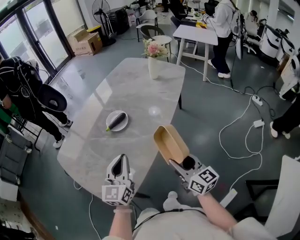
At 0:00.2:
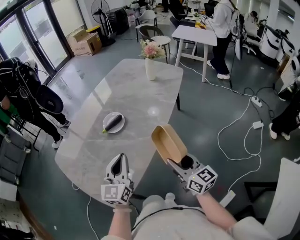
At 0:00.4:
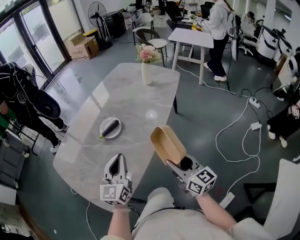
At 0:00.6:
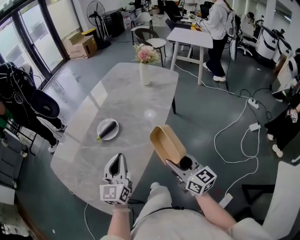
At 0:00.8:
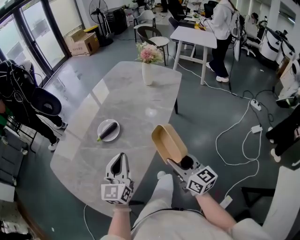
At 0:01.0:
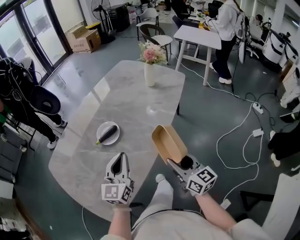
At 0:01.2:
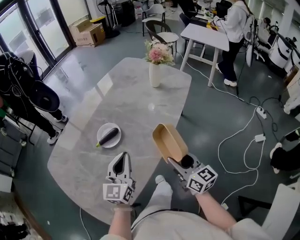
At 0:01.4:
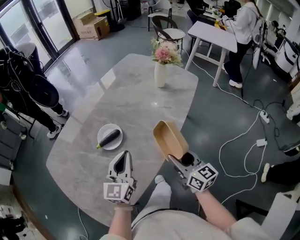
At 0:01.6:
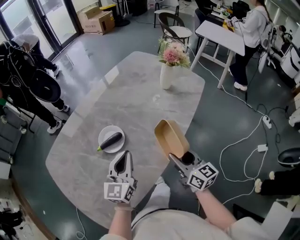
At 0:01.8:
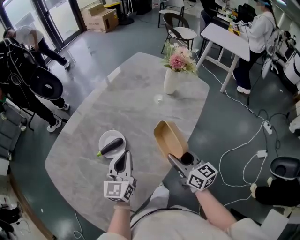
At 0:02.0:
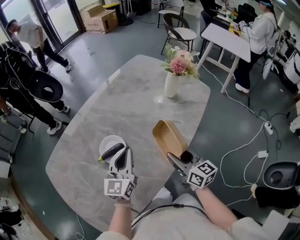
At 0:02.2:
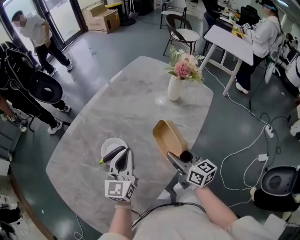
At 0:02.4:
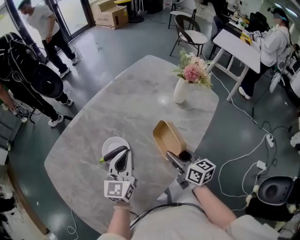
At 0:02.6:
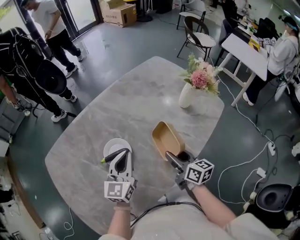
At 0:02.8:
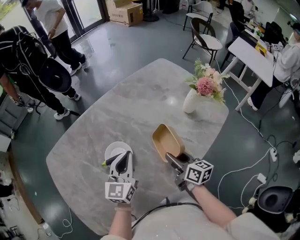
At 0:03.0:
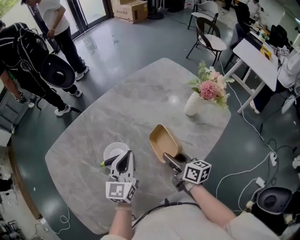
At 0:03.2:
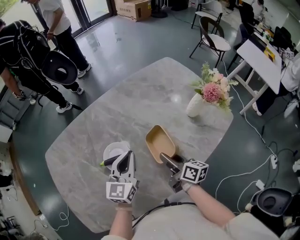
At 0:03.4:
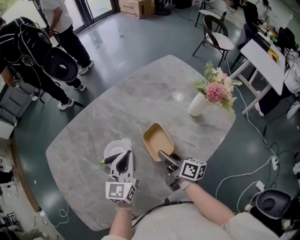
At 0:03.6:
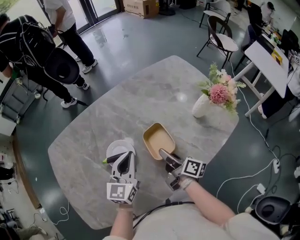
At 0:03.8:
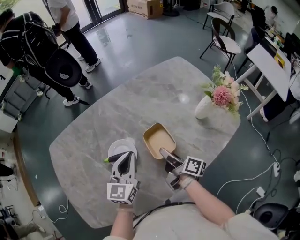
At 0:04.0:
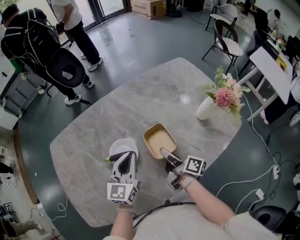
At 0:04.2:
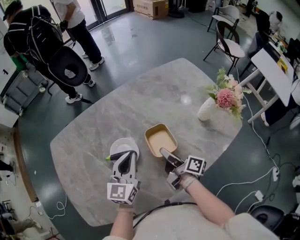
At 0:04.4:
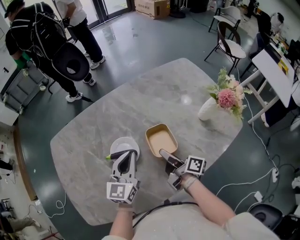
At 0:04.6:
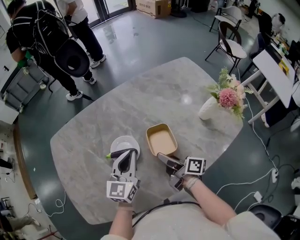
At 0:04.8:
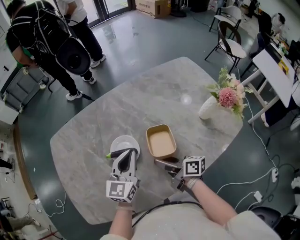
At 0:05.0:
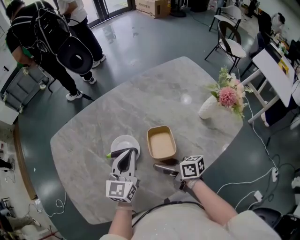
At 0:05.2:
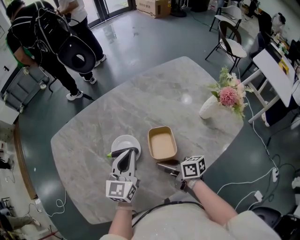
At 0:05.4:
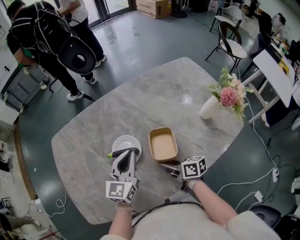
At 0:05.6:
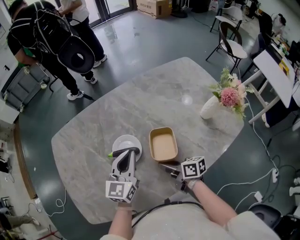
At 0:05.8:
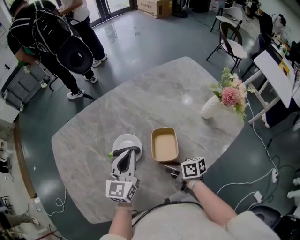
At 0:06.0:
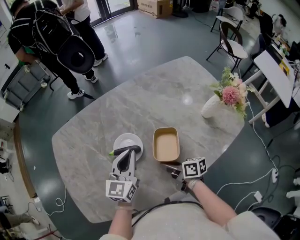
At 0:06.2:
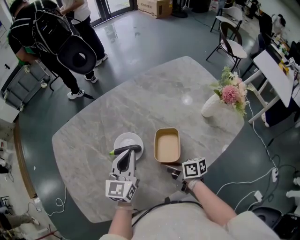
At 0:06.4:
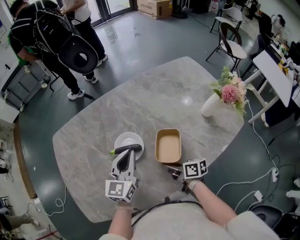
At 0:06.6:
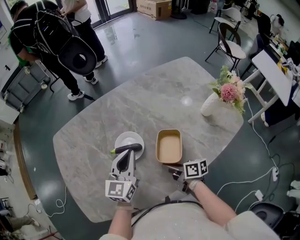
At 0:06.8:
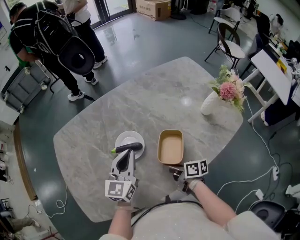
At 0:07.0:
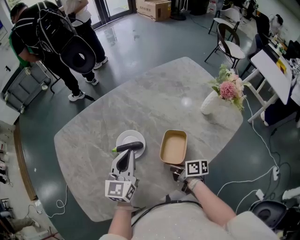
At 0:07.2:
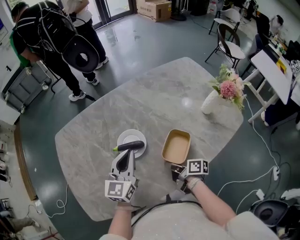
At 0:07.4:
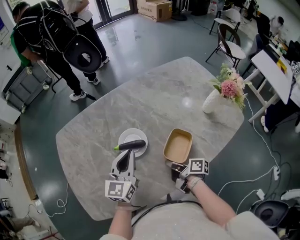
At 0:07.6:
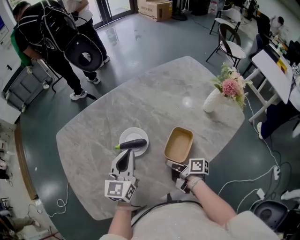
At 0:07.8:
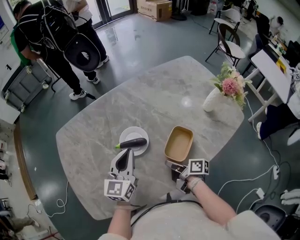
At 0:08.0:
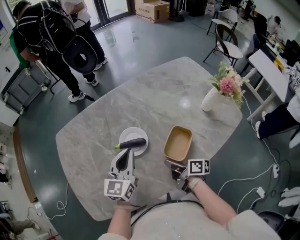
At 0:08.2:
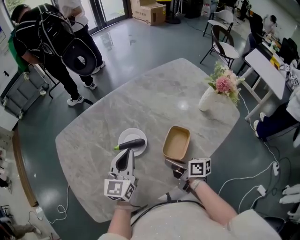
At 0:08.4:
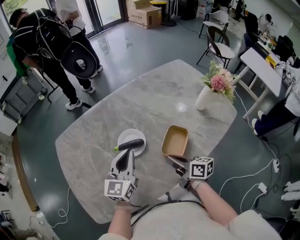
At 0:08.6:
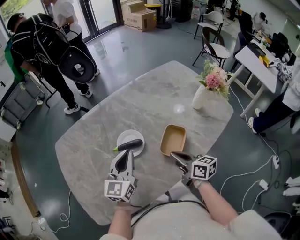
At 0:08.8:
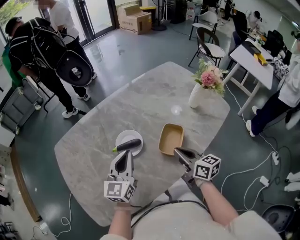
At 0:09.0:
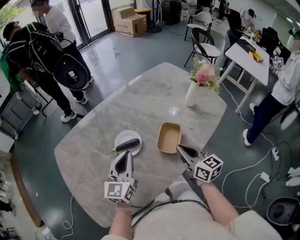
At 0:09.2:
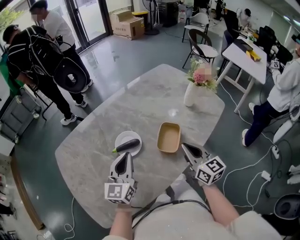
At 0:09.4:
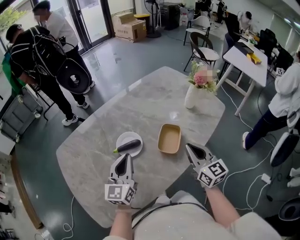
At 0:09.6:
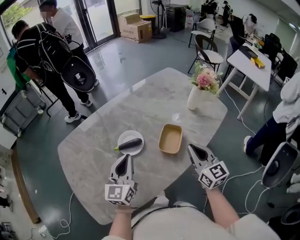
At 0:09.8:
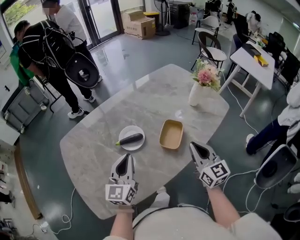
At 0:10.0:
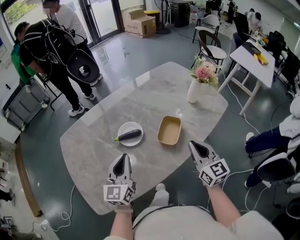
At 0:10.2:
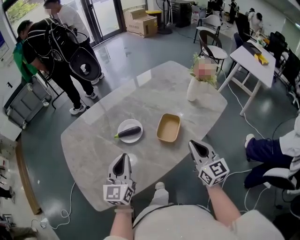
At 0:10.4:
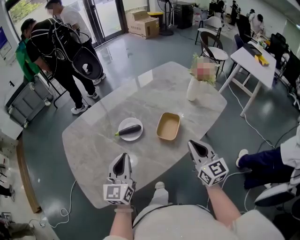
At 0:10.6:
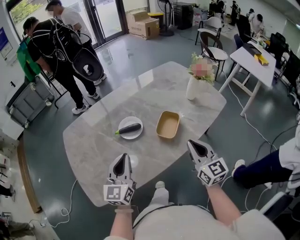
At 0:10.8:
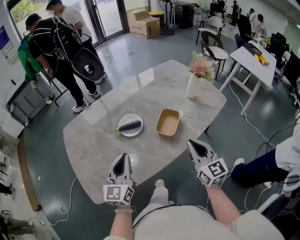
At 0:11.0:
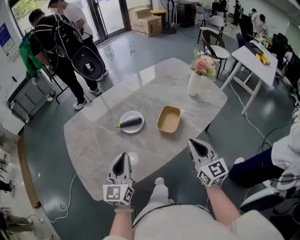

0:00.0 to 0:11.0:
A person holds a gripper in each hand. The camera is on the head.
0:00.0 to 0:01.6: The right gripper goes roughly 25 cm forward; the left gripper is displaced forward and to the right by about 20 cm.
0:01.6 to 0:03.2: Both grippers move forward, some 15 cm. The right gripper changes its angle by approximately 30 degrees.
0:03.2 to 0:04.8: The right gripper is displaced to the left by about 10 cm, and rotates roughly 30 degrees.
0:04.8 to 0:06.2: The right gripper moves approximately 5 cm, and closes its fingers.
0:06.2 to 0:07.8: The right gripper turns by some 20 degrees.
0:07.8 to 0:09.4: The left gripper heads backward, covering some 5 cm. Meanwhile the right gripper shifts some 20 cm upward and to the right, and twists about 70 degrees counterclockwise, seen from behind.
0:09.4 to 0:11.0: The grippers both shift backward by approximately 10 cm.

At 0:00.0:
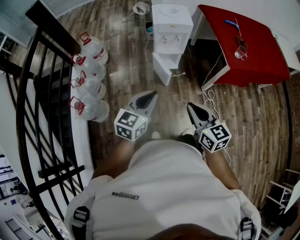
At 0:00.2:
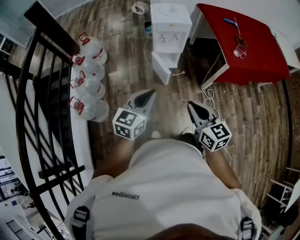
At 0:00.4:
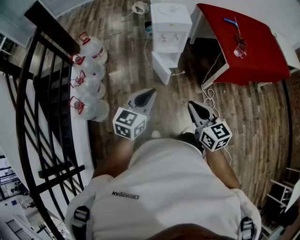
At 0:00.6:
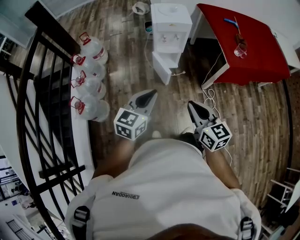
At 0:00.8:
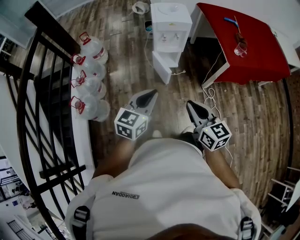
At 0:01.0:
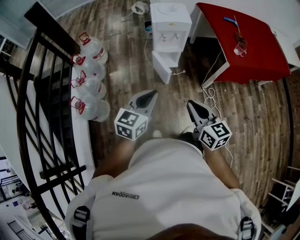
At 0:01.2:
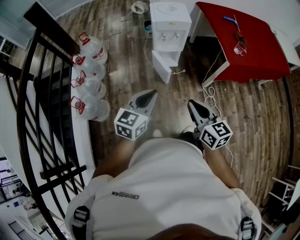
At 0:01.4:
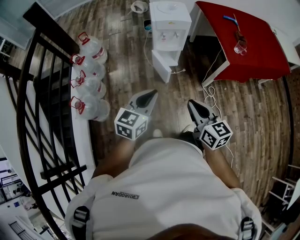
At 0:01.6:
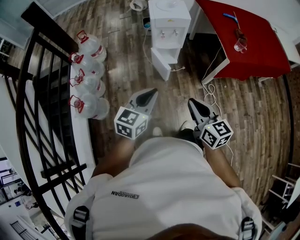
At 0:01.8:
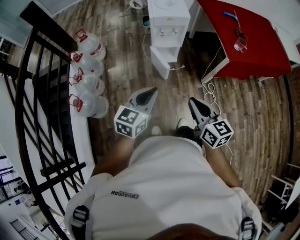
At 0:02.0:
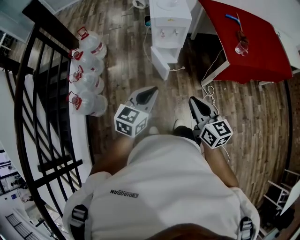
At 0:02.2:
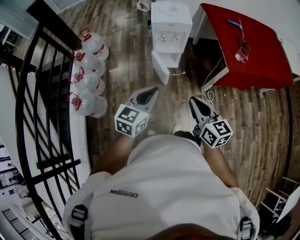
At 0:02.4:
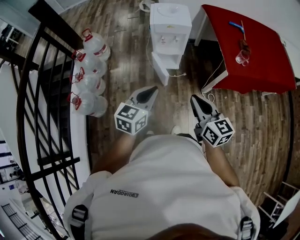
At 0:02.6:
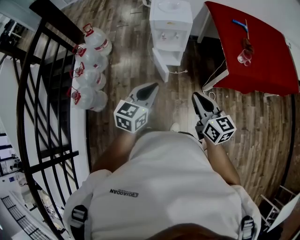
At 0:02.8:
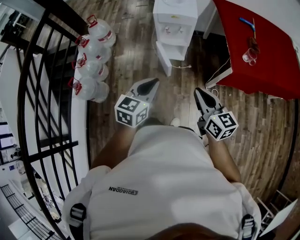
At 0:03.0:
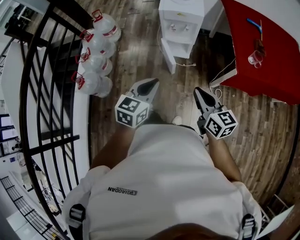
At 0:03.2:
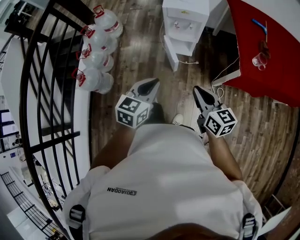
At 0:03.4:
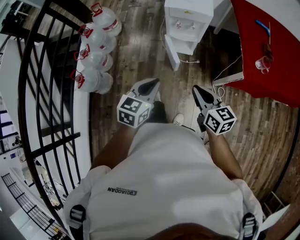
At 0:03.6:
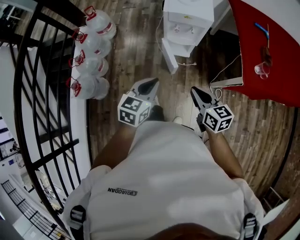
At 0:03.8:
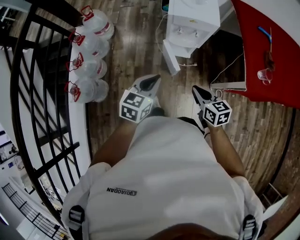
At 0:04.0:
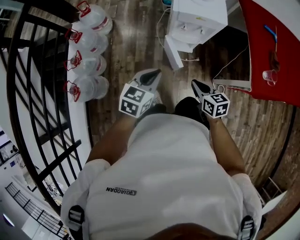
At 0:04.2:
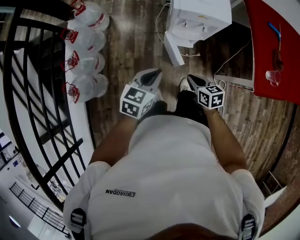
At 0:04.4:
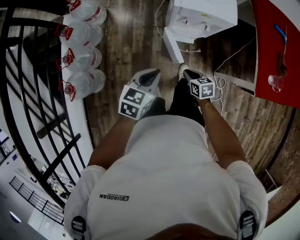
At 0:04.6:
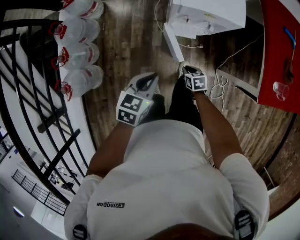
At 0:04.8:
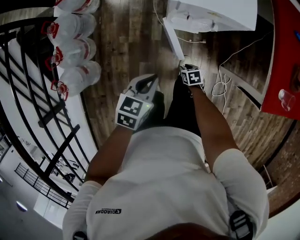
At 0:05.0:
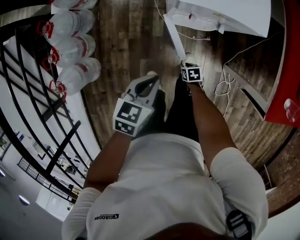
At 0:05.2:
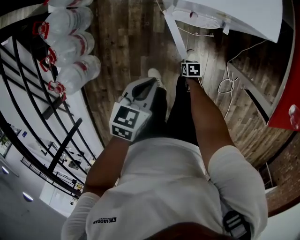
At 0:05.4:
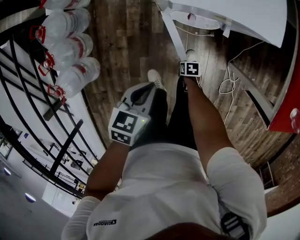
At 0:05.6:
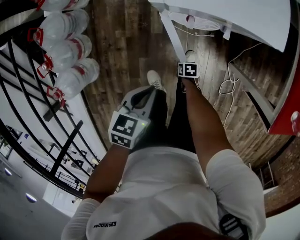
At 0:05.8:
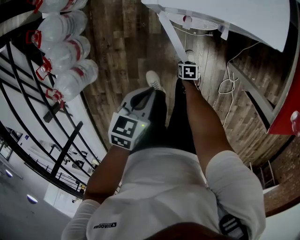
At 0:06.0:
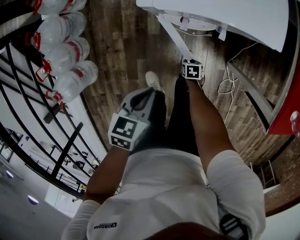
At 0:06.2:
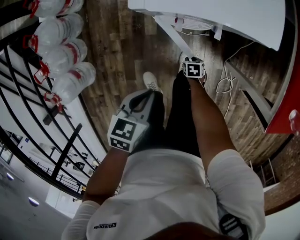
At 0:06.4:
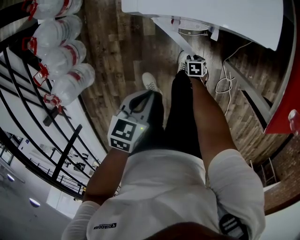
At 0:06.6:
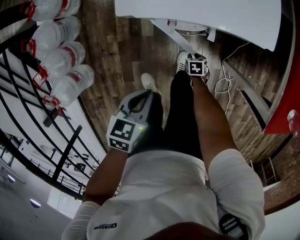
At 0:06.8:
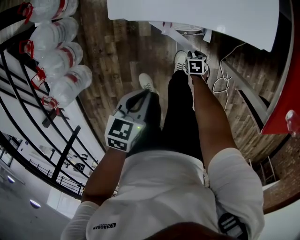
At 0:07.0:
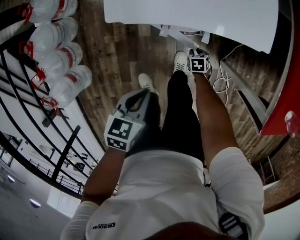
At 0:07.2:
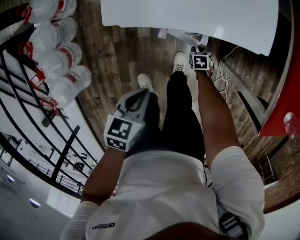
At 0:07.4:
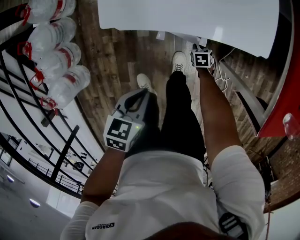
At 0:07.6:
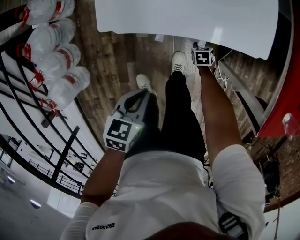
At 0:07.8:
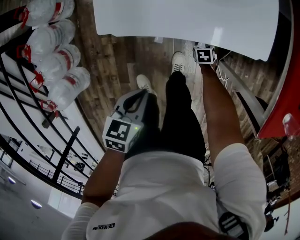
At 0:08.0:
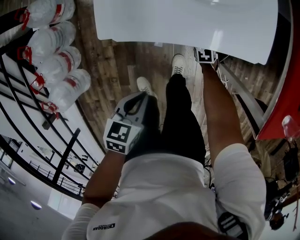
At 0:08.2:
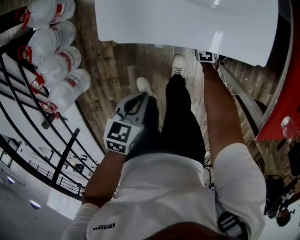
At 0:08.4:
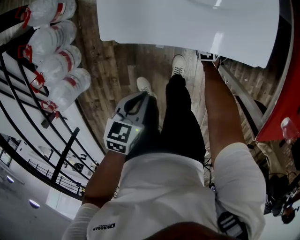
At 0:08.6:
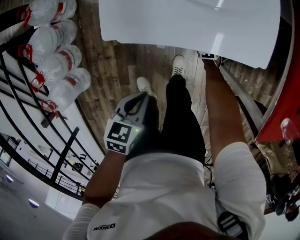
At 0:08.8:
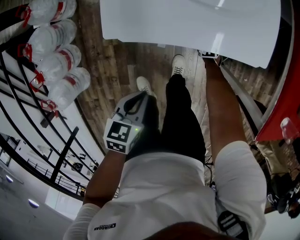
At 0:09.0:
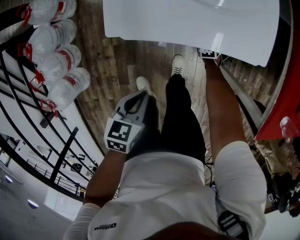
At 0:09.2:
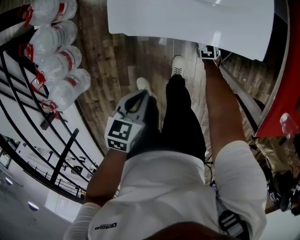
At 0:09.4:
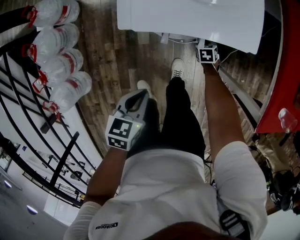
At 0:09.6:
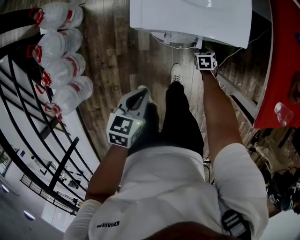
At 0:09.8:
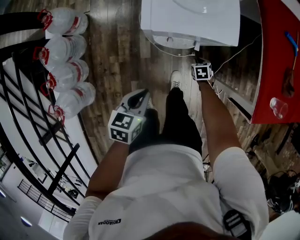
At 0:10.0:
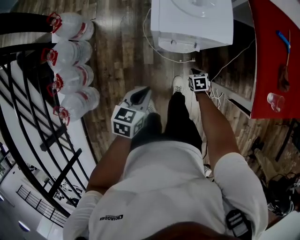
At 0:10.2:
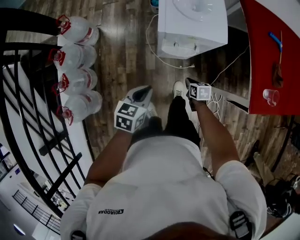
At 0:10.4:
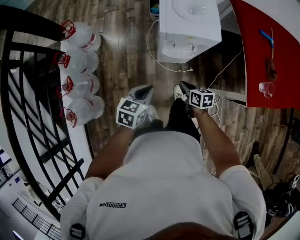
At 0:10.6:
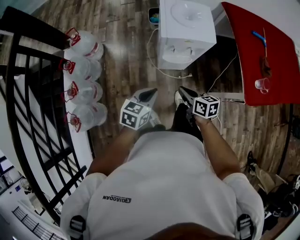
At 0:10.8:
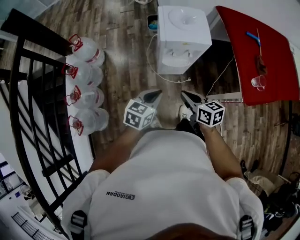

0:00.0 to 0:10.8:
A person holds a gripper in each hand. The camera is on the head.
0:00.0 to 0:01.6: The grippers make only small movements.
0:01.6 to 0:03.0: Both grippers travel together to the right and forward, approximately 15 cm.
0:03.0 to 0:04.6: The right gripper moves downward and forward, roughly 50 cm, and tilts its fingers roughly 50 degrees downward. Meanwhile the left gripper goes some 30 cm forward and downward.
0:04.6 to 0:06.2: The left gripper shifts some 15 cm downward. The right gripper is displaced downward by approximately 25 cm.
0:06.2 to 0:07.8: The right gripper shifts by about 15 cm.
0:07.8 to 0:09.2: The grippers stay close to where they were, moving slightly.
0:09.2 to 0:10.8: The left gripper travels upward and backward by approximately 25 cm, and turns by approximately 30 degrees. The right gripper heads upward and backward, covering approximately 60 cm, and angles its fingers upward, by some 40 degrees.

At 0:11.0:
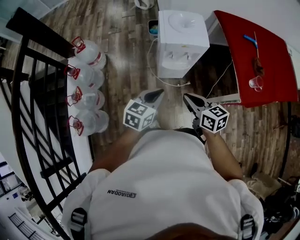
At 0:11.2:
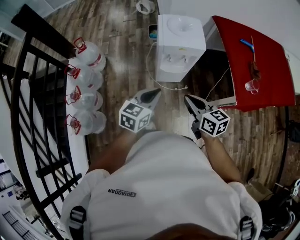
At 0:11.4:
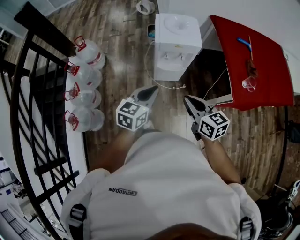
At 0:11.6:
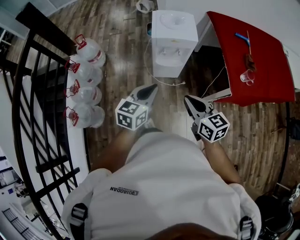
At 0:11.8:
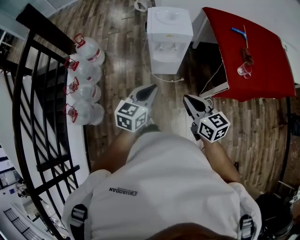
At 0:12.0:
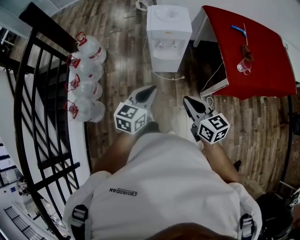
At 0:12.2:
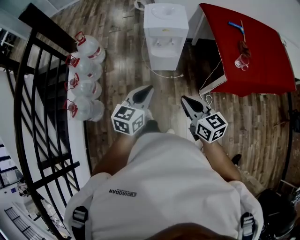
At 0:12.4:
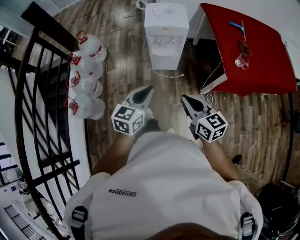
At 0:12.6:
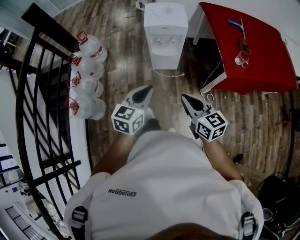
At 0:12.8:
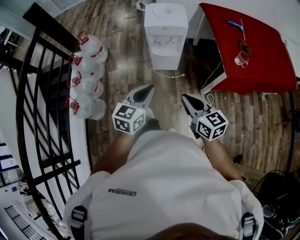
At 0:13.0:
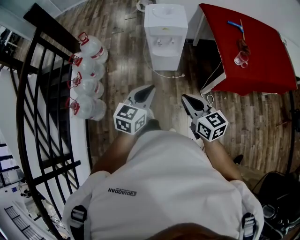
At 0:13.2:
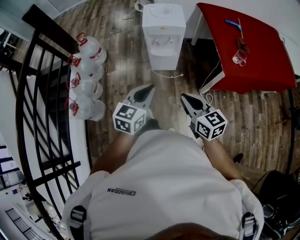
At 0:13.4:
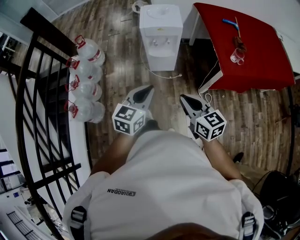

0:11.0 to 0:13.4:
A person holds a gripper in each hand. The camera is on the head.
0:11.0 to 0:12.2: The right gripper travels backward and to the right by roughly 20 cm. Meanwhile the left gripper travels backward, to the right and upward by approximately 20 cm.
0:12.2 to 0:13.4: The grippers stay close to where they were, moving slightly.
